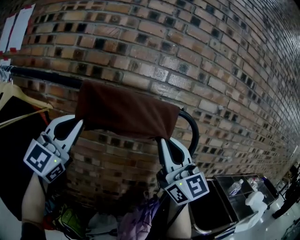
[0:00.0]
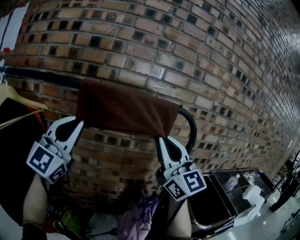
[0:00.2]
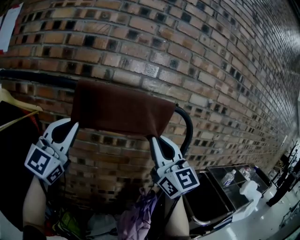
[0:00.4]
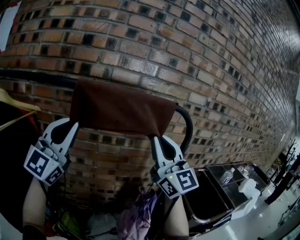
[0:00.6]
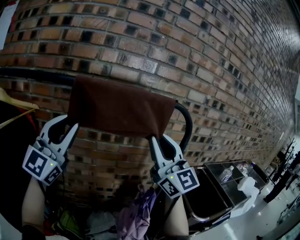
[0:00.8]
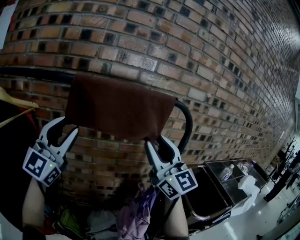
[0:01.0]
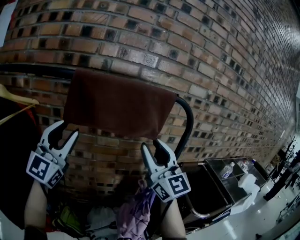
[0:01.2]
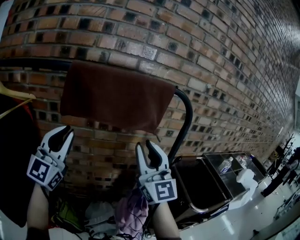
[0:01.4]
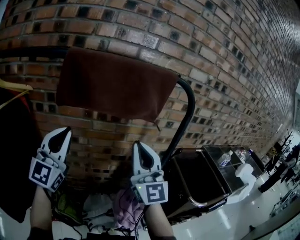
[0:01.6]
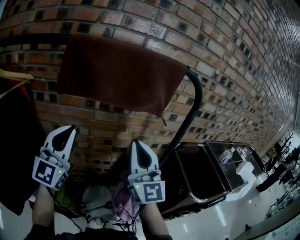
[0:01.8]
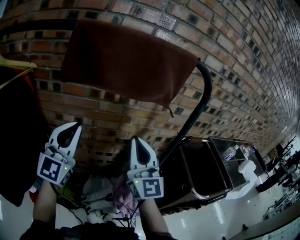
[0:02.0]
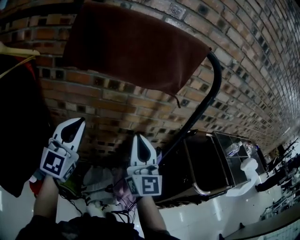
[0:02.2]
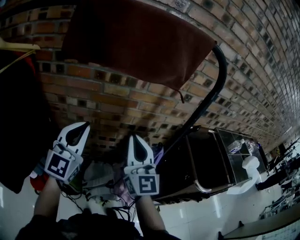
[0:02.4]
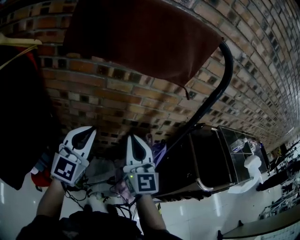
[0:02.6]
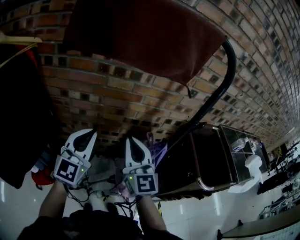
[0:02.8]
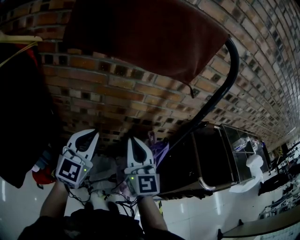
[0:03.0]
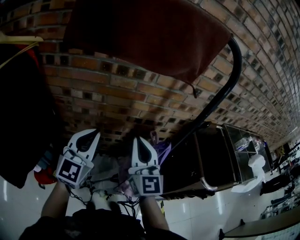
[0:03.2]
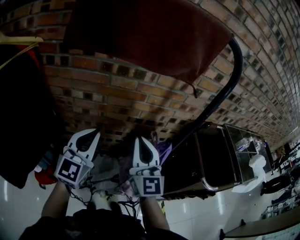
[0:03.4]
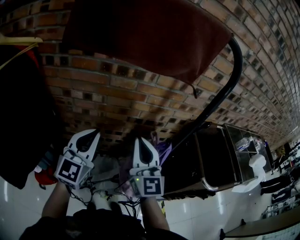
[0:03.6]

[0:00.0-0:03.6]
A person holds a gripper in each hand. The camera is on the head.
0:00.0 to 0:01.8: Both grippers move downward, about 15 cm. The left gripper opens and closes again, while the right gripper opens, then closes once more.
0:01.8 to 0:03.6: The grippers both shift downward by about 15 cm.

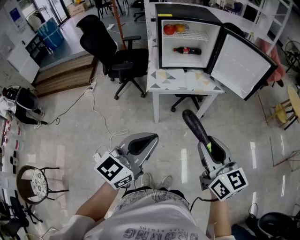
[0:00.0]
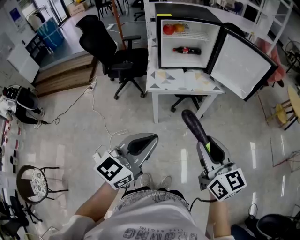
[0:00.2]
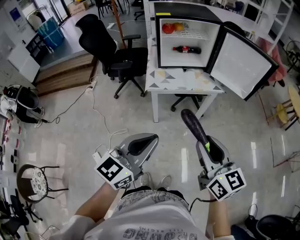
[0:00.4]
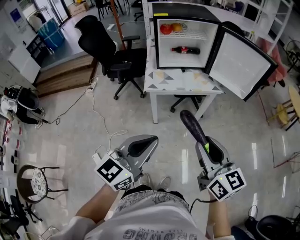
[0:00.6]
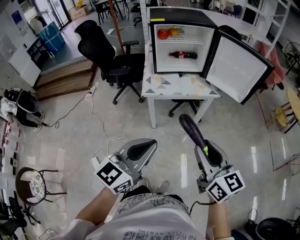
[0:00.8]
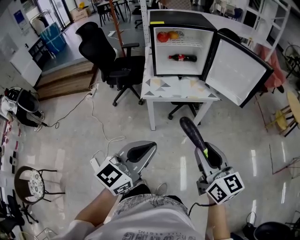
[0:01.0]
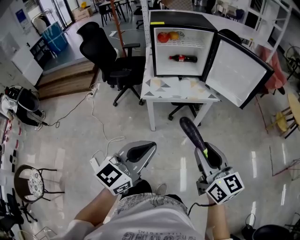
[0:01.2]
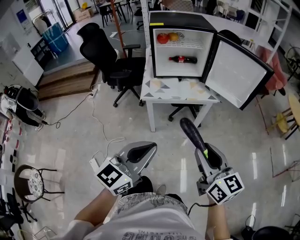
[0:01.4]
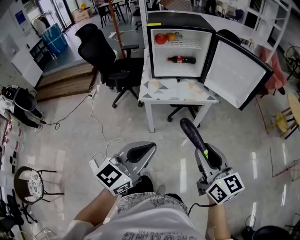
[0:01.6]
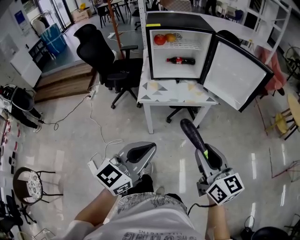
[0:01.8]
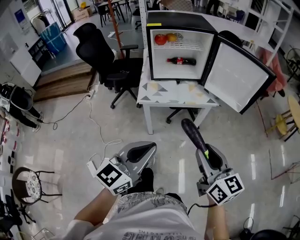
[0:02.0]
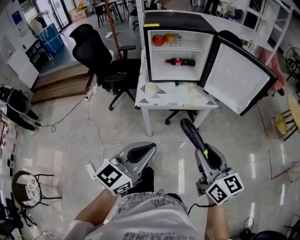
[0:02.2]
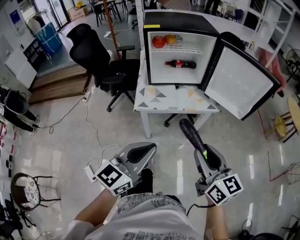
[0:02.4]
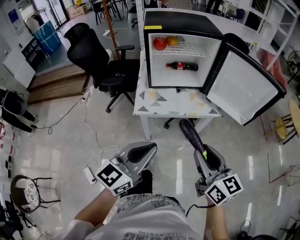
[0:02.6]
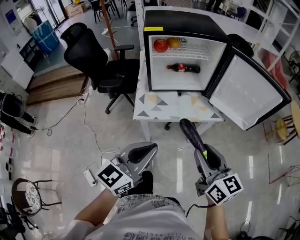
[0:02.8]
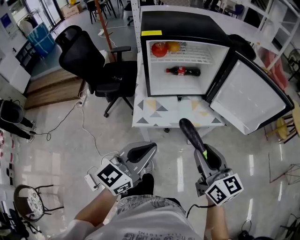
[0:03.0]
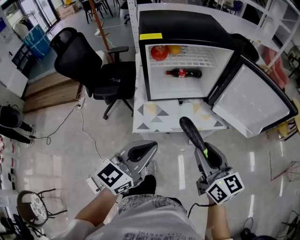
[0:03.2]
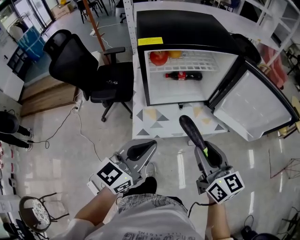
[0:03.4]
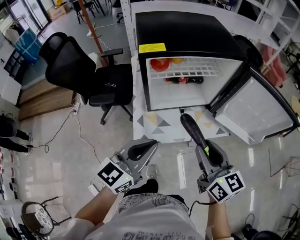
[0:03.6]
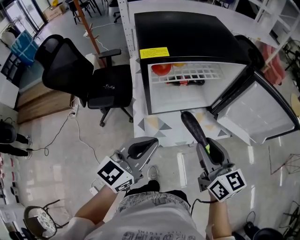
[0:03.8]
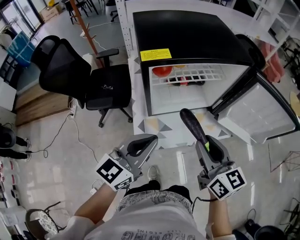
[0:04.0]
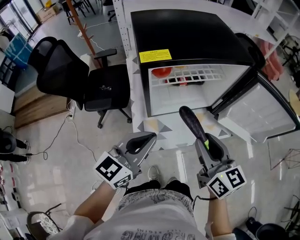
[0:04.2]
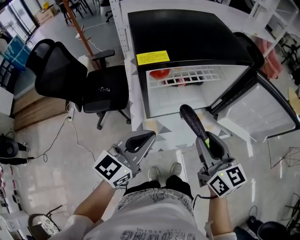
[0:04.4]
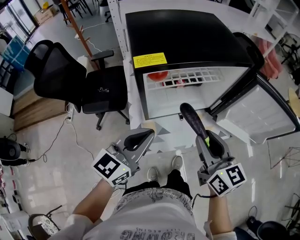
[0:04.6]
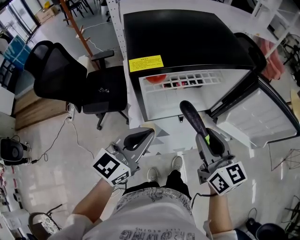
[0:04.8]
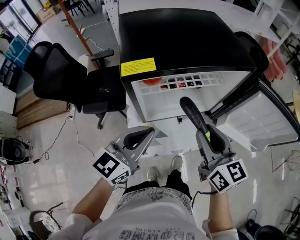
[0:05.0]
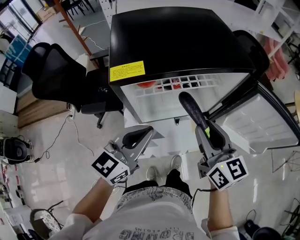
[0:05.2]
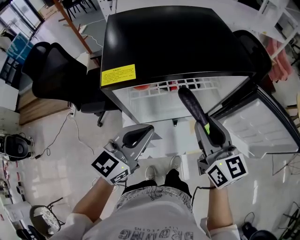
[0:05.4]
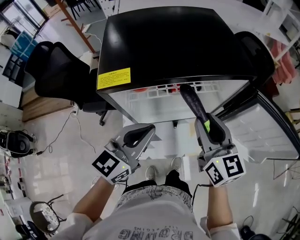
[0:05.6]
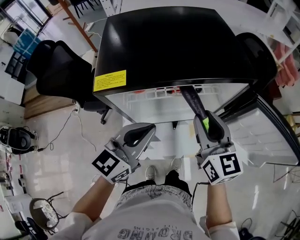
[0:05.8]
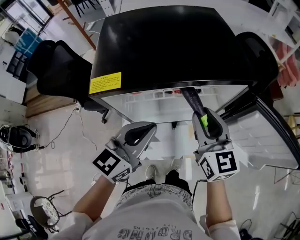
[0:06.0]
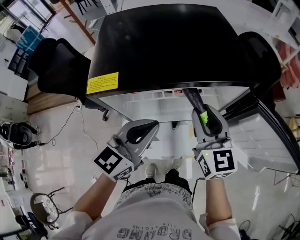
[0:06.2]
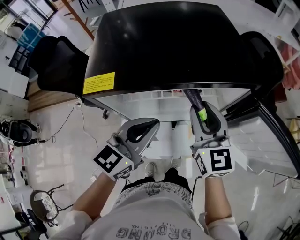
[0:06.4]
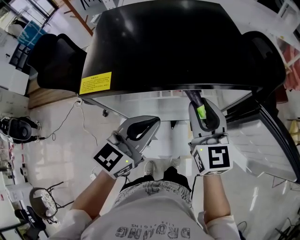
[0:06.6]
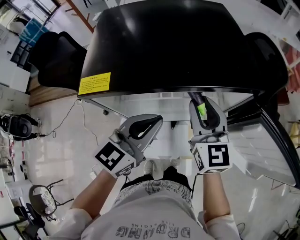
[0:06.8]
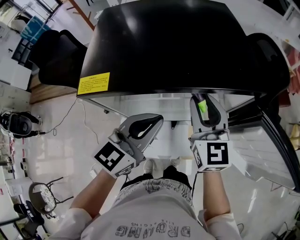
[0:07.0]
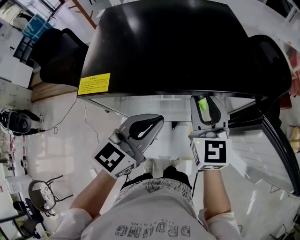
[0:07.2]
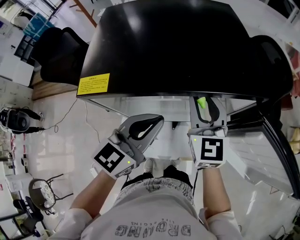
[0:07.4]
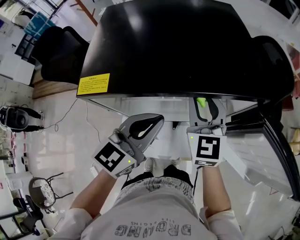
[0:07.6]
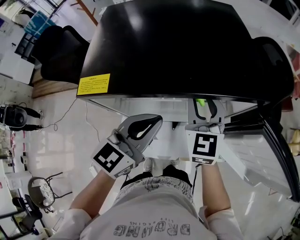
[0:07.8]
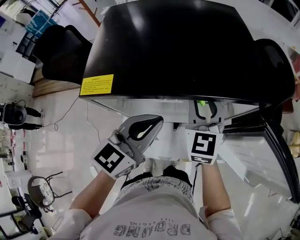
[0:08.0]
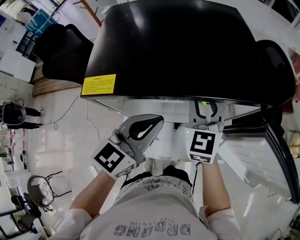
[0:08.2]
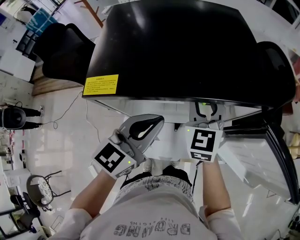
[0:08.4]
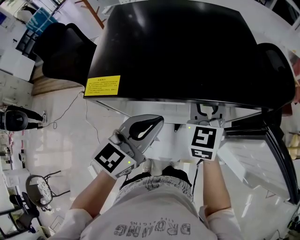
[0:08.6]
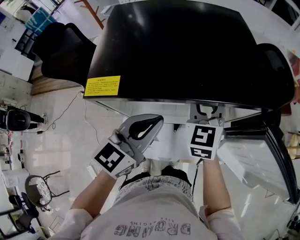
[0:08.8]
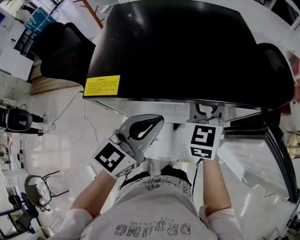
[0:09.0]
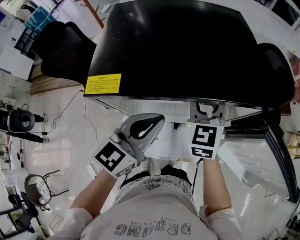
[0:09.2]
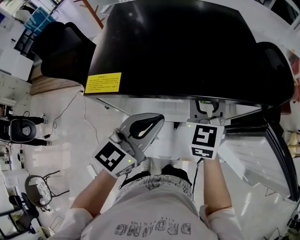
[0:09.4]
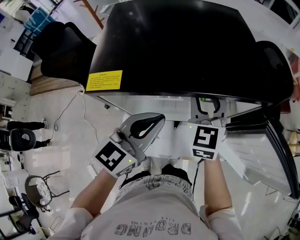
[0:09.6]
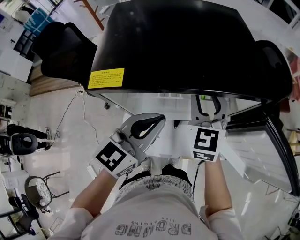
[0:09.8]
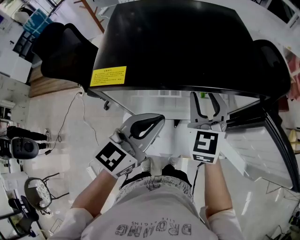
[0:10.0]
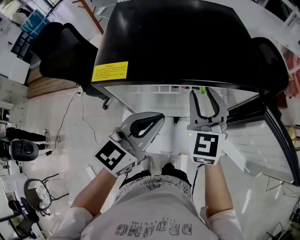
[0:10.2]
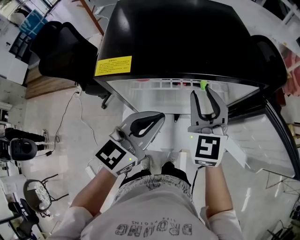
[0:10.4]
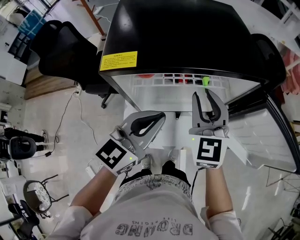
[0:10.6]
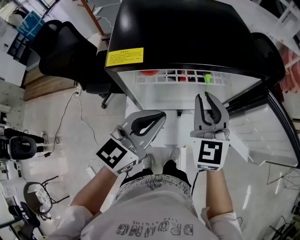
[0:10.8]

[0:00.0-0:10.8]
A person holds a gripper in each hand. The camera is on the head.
0:00.0 to 0:01.6: The two grippers go some 5 cm to the right.
0:01.6 to 0:03.0: Both grippers travel together forward, roughly 25 cm.
0:03.0 to 0:04.6: Both grippers travel together forward and to the left, some 25 cm.
0:04.6 to 0:06.2: The left gripper heads forward and to the right, covering approximately 15 cm; the right gripper travels forward by roughly 15 cm.
0:06.2 to 0:07.8: The right gripper goes about 5 cm forward.
0:07.8 to 0:09.2: The grippers move only a little.
0:09.2 to 0:10.8: The right gripper goes about 10 cm backward, and closes. The left gripper moves backward, roughly 5 cm.

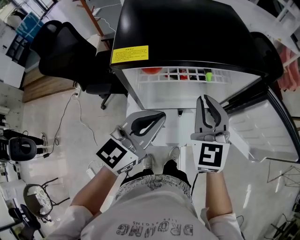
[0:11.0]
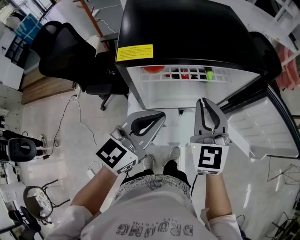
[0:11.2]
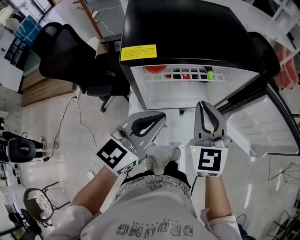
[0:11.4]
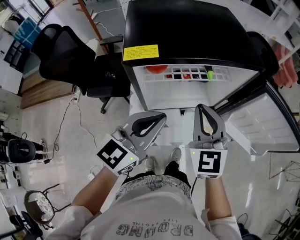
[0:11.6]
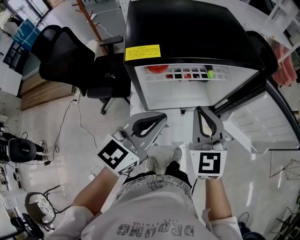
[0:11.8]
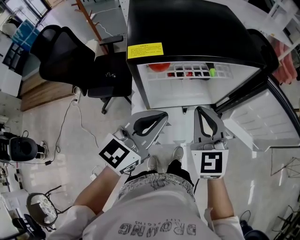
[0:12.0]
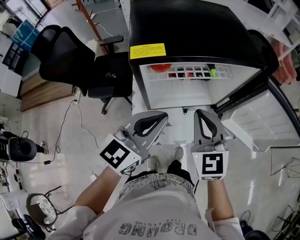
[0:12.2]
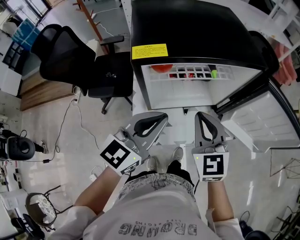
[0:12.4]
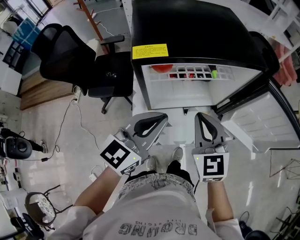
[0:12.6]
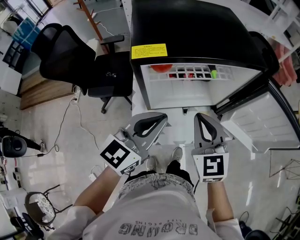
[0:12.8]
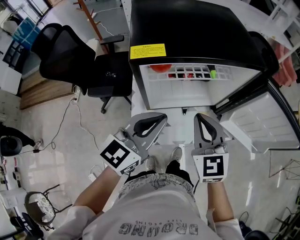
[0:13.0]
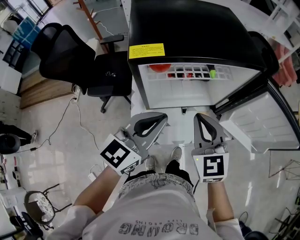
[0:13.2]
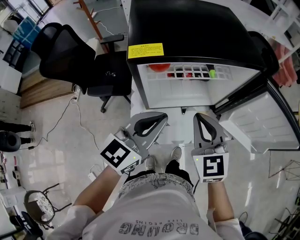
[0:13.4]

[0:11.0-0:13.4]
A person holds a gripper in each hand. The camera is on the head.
0:11.0 to 0:12.2: The right gripper heads backward, covering approximately 5 cm.
0:12.2 to 0:13.4: The two grippers keep their place.

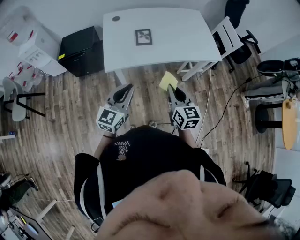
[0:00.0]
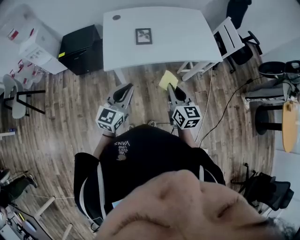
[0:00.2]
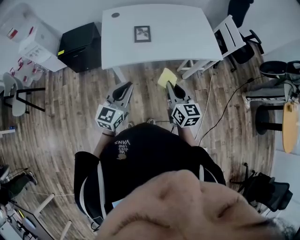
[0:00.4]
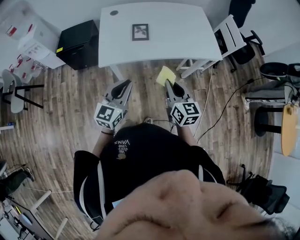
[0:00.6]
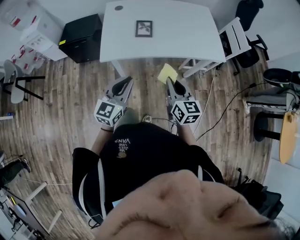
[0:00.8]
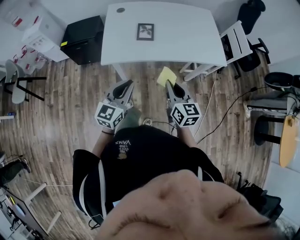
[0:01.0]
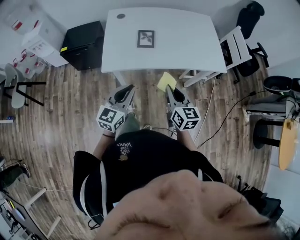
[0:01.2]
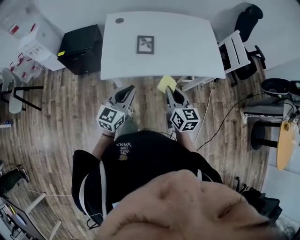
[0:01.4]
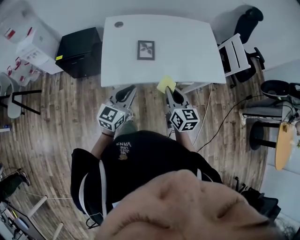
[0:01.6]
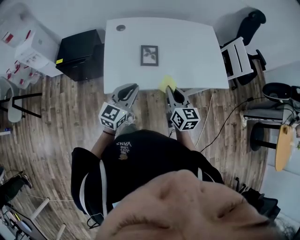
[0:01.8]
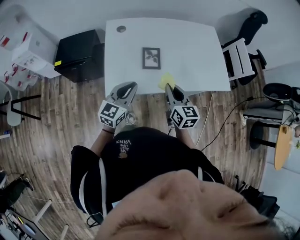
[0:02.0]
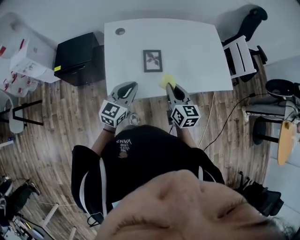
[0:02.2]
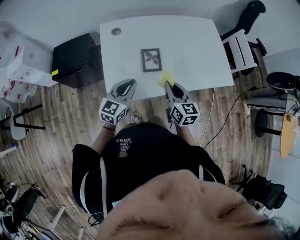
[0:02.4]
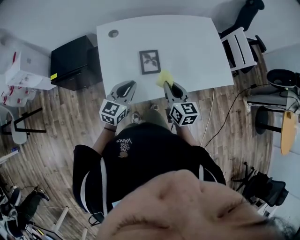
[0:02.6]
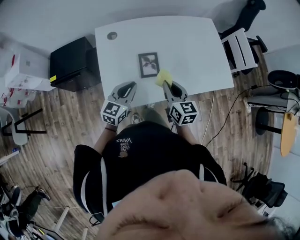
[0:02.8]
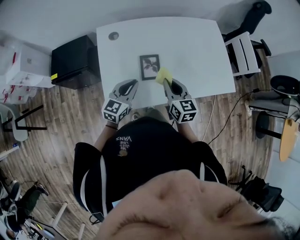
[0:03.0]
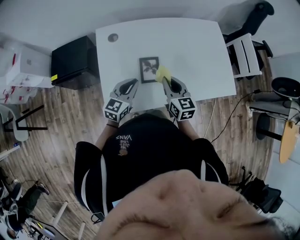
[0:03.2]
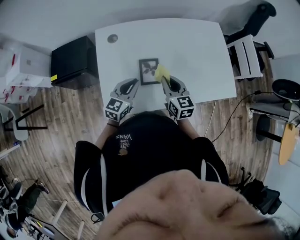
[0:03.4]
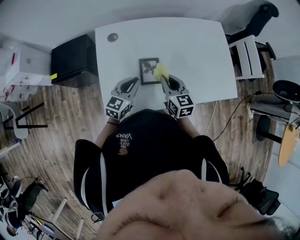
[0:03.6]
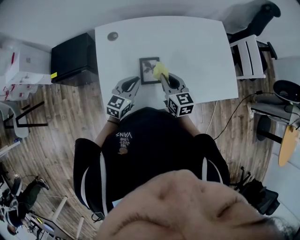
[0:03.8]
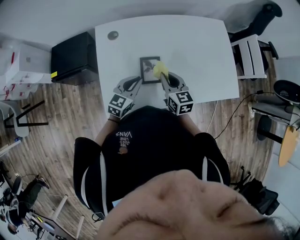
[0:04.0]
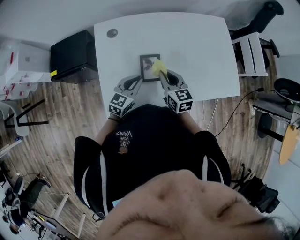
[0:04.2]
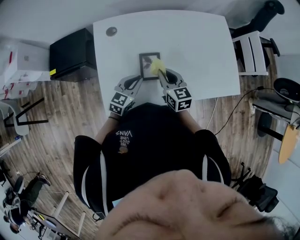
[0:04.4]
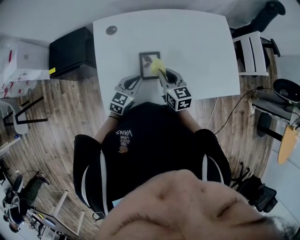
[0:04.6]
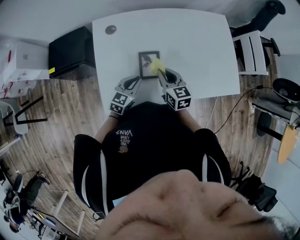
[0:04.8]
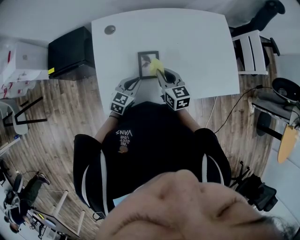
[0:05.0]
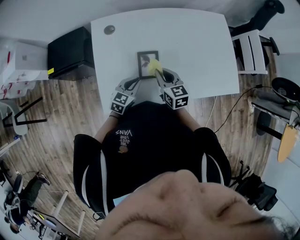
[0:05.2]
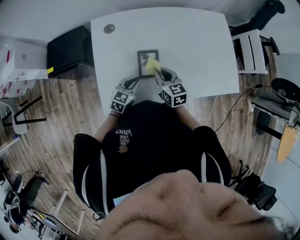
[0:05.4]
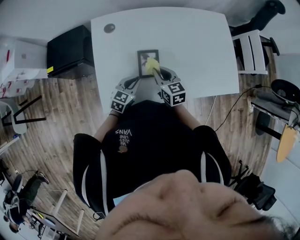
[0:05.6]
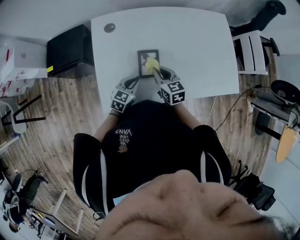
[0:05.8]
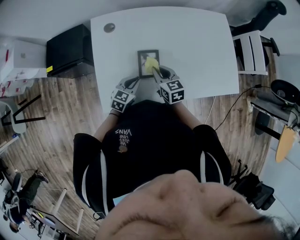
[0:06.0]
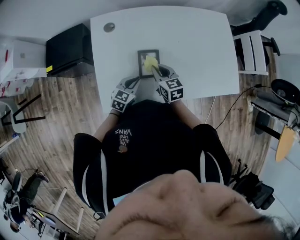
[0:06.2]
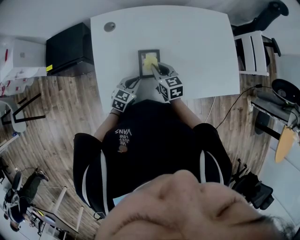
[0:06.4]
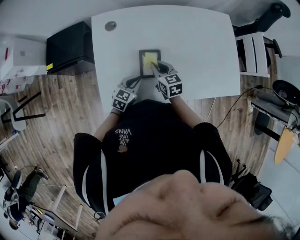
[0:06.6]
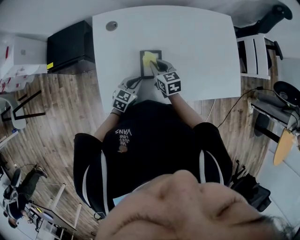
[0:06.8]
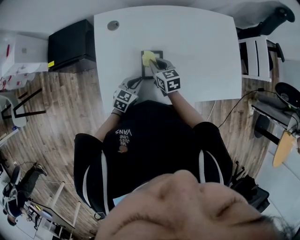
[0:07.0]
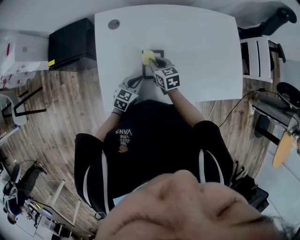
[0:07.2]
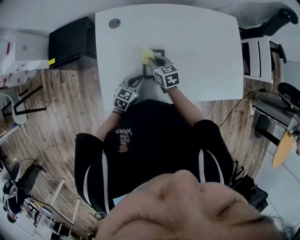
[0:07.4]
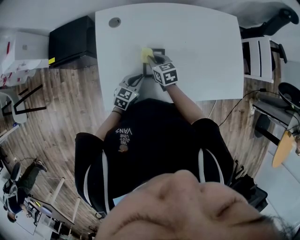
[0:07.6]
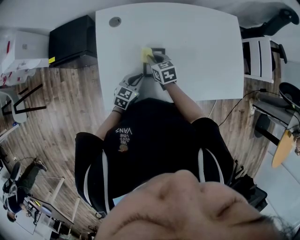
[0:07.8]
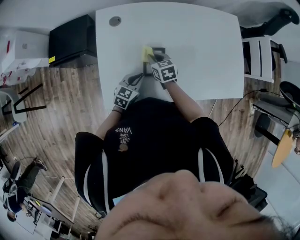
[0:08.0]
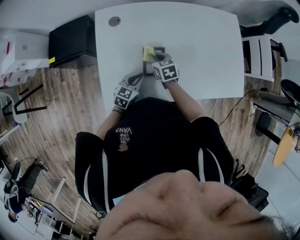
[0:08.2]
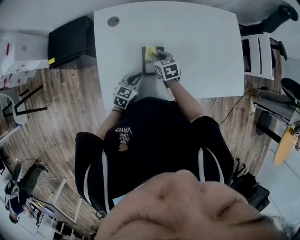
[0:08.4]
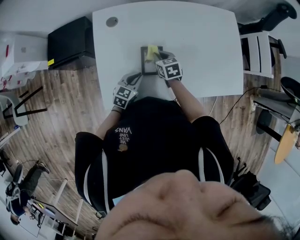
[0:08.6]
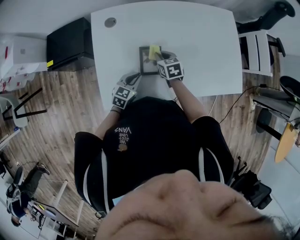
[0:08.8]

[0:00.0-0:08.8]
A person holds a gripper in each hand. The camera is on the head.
0:00.0 to 0:01.4: Both grippers travel together forward, roughly 10 cm.
0:01.4 to 0:03.0: The left gripper moves forward, about 25 cm. Meanwhile the right gripper shifts some 25 cm forward and to the left.
0:03.0 to 0:04.4: The right gripper travels forward and downward by approximately 10 cm. Meanwhile the left gripper travels downward by some 5 cm.
0:04.4 to 0:05.8: The left gripper shifts some 5 cm downward.
0:05.8 to 0:07.4: The right gripper shifts about 5 cm forward.
0:07.4 to 0:08.8: The right gripper moves approximately 5 cm.
